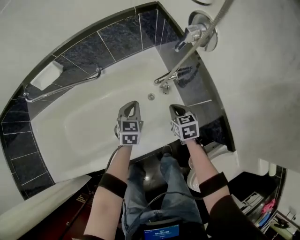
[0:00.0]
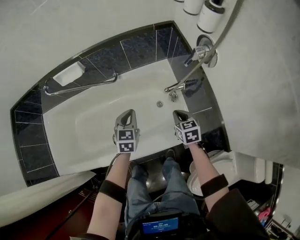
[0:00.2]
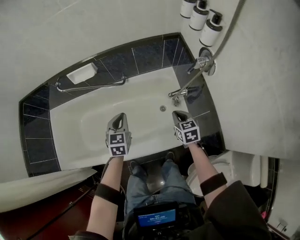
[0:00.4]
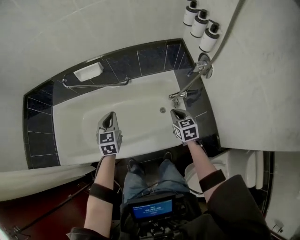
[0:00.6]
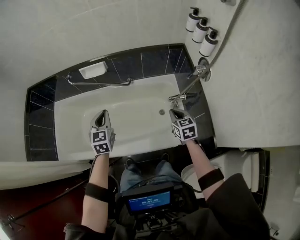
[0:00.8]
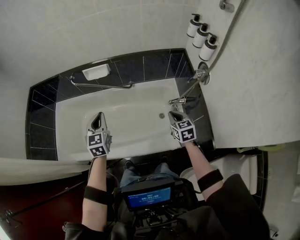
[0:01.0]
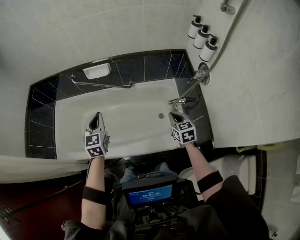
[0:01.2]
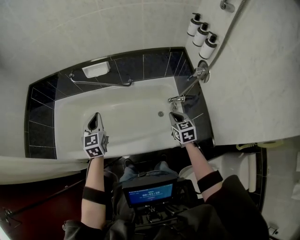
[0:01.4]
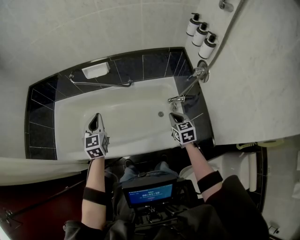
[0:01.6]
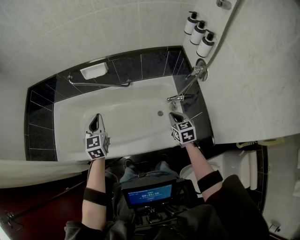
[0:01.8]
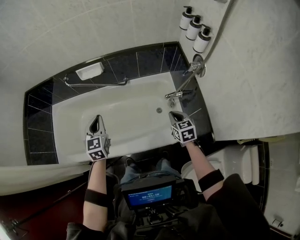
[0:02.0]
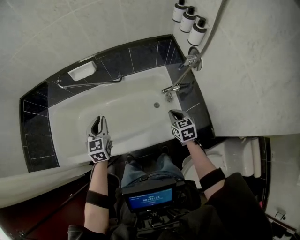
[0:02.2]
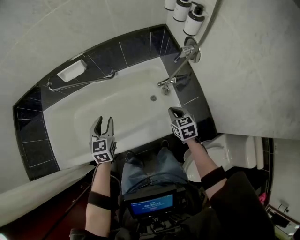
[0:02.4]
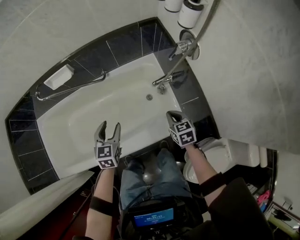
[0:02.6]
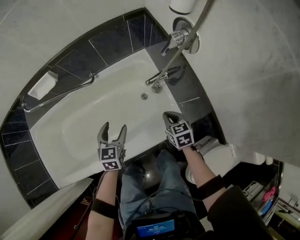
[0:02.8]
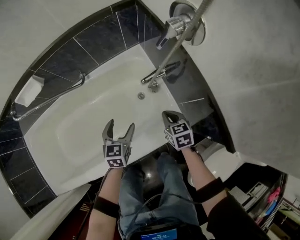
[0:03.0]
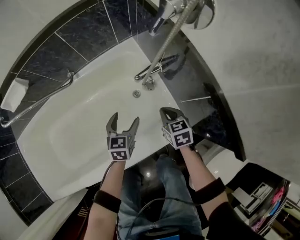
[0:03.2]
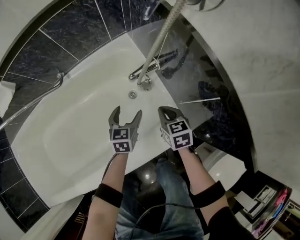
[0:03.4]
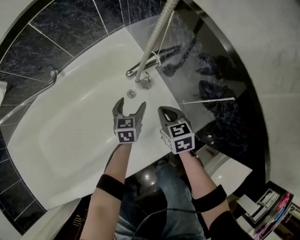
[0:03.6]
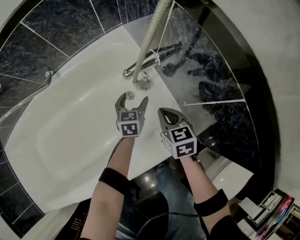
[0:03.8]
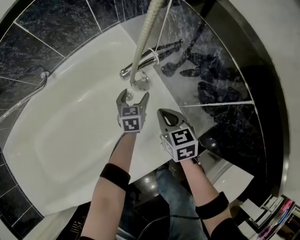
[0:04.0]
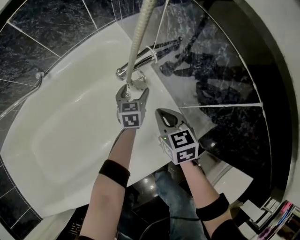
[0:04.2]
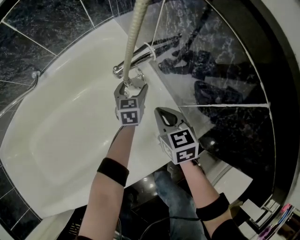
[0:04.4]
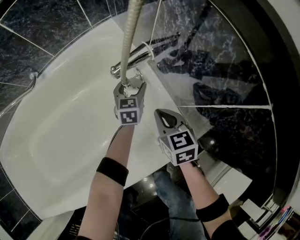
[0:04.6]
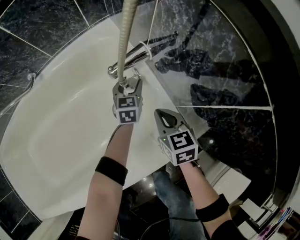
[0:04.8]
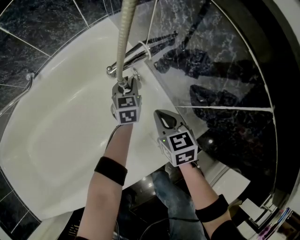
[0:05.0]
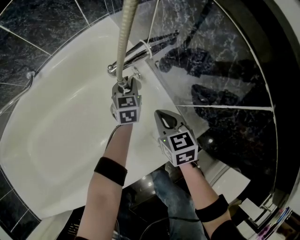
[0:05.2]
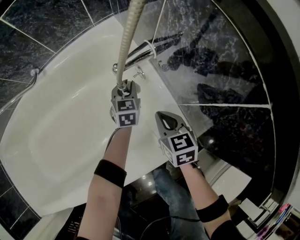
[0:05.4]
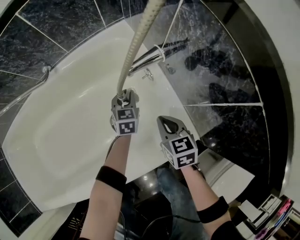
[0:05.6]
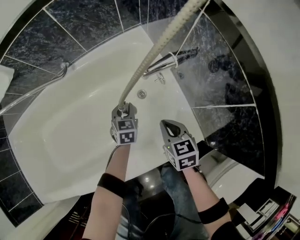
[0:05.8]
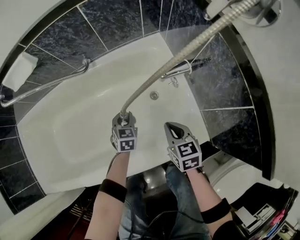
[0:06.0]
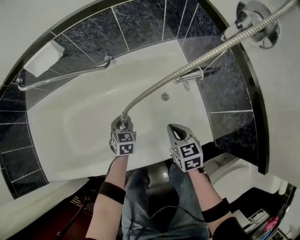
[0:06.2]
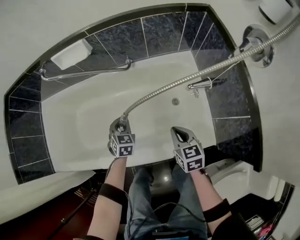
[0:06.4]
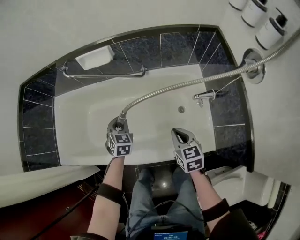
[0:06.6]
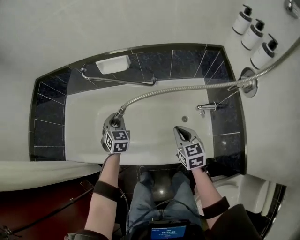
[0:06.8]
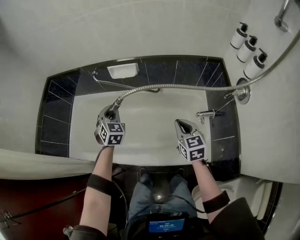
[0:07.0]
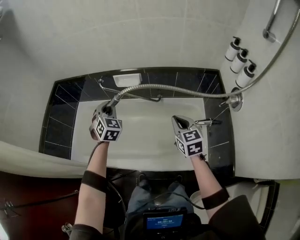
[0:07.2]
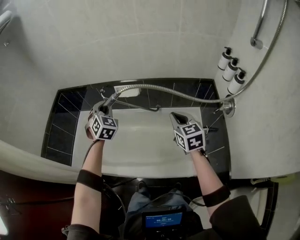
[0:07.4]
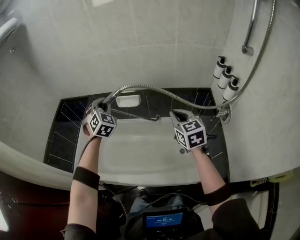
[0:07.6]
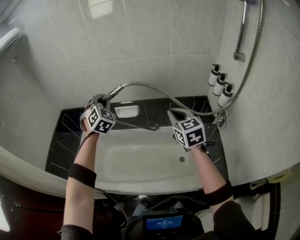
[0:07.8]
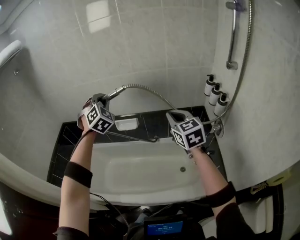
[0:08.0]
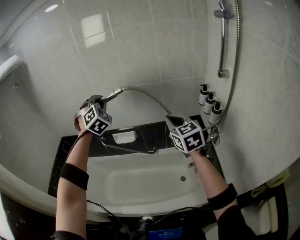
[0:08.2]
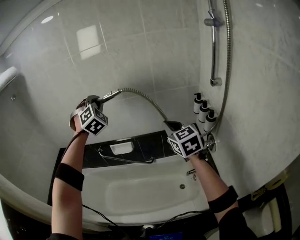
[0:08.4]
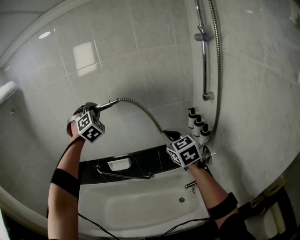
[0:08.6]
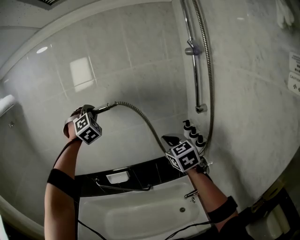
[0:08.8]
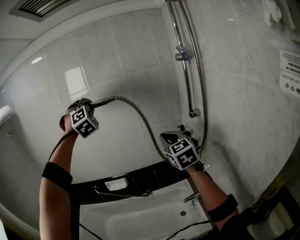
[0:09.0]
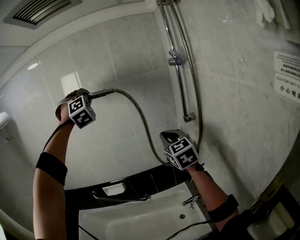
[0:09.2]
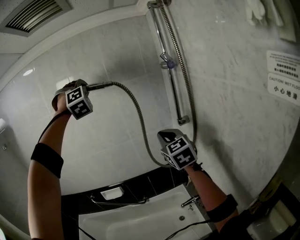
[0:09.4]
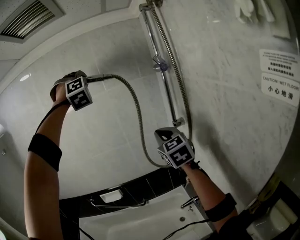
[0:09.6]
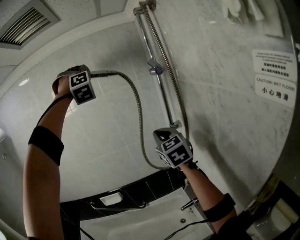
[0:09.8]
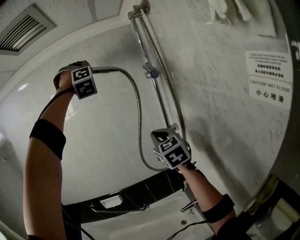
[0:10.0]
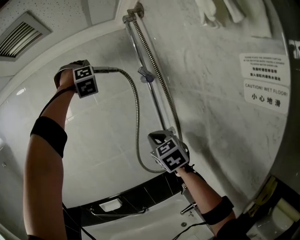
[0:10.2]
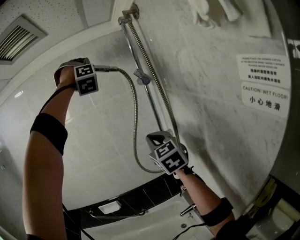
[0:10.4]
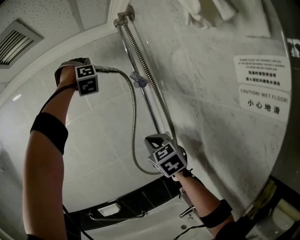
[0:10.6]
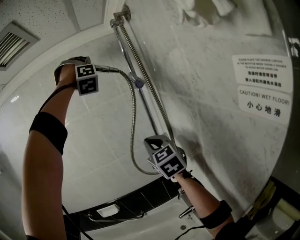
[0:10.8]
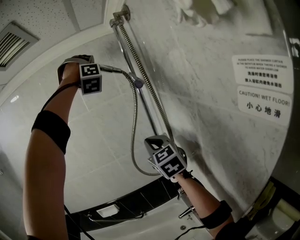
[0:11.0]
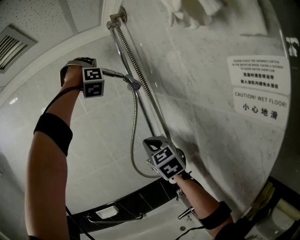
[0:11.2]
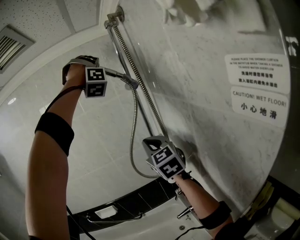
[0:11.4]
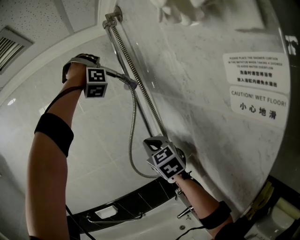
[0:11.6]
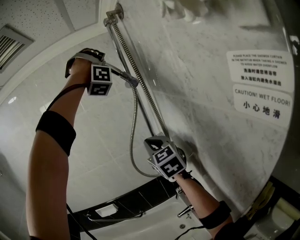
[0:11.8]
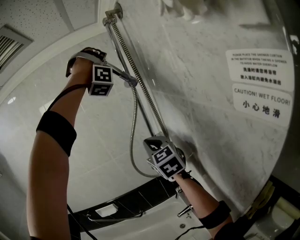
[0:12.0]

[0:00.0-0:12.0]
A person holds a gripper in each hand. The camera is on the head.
0.0 to 1.6 s: The right gripper travels upward and to the left by approximately 25 cm; the left gripper heads to the left and upward, covering about 50 cm, and rotates roughly 30 degrees.
1.6 to 3.0 s: The two grippers go about 40 cm downward and to the right. The left gripper turns by roughly 30 degrees, and opens its fingers, while the right gripper rotates approximately 20 degrees.
3.0 to 4.4 s: The right gripper travels downward by about 20 cm. Meanwhile the left gripper goes approximately 40 cm downward, forward and to the right.
4.4 to 6.0 s: The right gripper shifts some 15 cm to the left, upward and backward, while the left gripper goes roughly 25 cm to the left and backward, rotates approximately 20 degrees, and closes its fingers.
6.0 to 7.6 s: The grippers both shift upward by approximately 70 cm. The left gripper turns by some 40 degrees; the right gripper turns by some 40 degrees.
7.6 to 9.0 s: The grippers both shift upward and to the right by approximately 40 cm. The right gripper changes its angle by approximately 20 degrees. Meanwhile the left gripper turns by roughly 40 degrees.
9.0 to 10.4 s: The right gripper heads to the right and upward, covering approximately 15 cm; the left gripper shifts approximately 35 cm to the right and upward, and swivels some 30 degrees.
10.4 to 12.0 s: The left gripper is displaced to the right by about 15 cm, and turns by approximately 30 degrees.

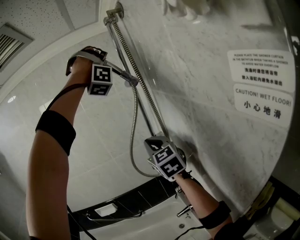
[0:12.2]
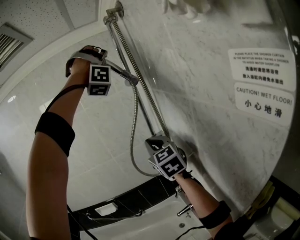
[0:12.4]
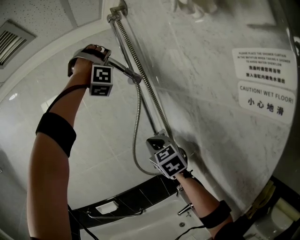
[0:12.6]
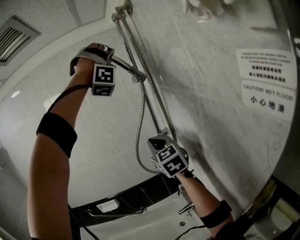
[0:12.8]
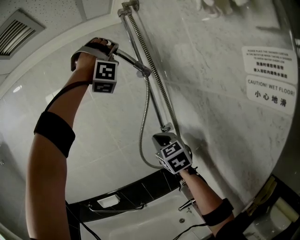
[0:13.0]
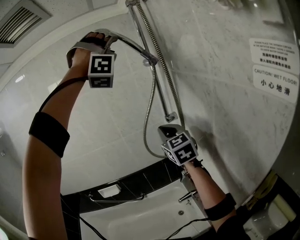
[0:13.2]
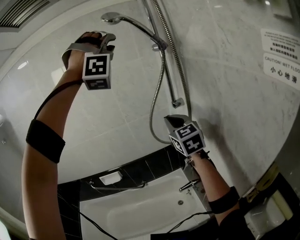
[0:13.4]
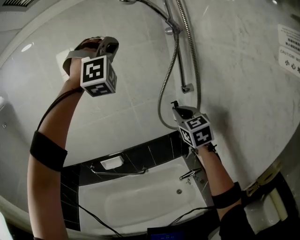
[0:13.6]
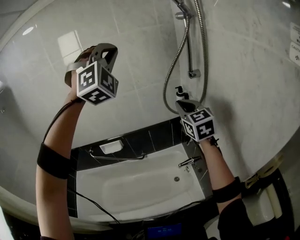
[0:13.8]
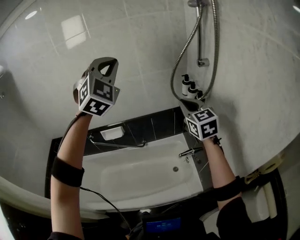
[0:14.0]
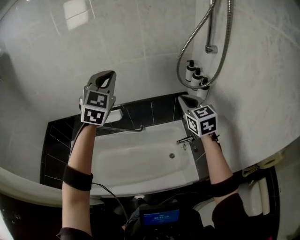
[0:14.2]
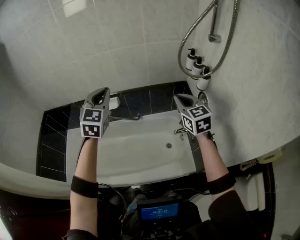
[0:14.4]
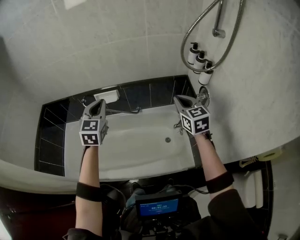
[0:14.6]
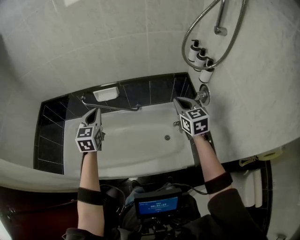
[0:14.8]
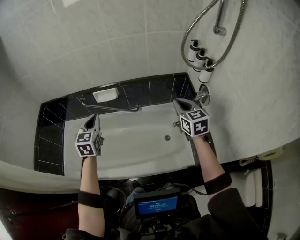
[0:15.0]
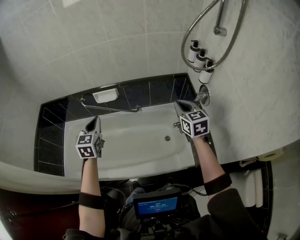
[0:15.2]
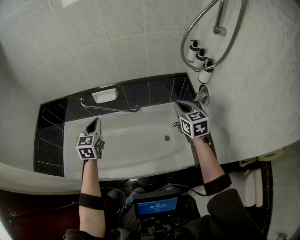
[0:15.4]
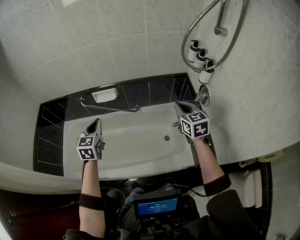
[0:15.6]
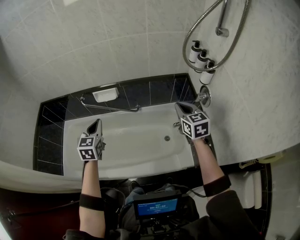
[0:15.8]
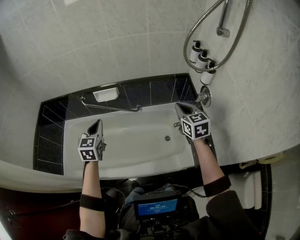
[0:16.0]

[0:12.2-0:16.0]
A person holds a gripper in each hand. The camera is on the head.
12.2 to 13.4 s: The left gripper is displaced backward, to the left and downward by approximately 15 cm, and changes its angle by about 20 degrees. Meanwhile the right gripper moves downward, roughly 5 cm.
13.4 to 14.8 s: The right gripper heads downward and to the left, covering some 30 cm, and turns by approximately 20 degrees, while the left gripper goes about 70 cm downward and to the left, and rotates around the line of its fingers by some 110 degrees, counterclockwise from behind.
14.8 to 16.0 s: The left gripper shifts roughly 5 cm downward.

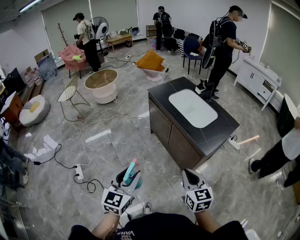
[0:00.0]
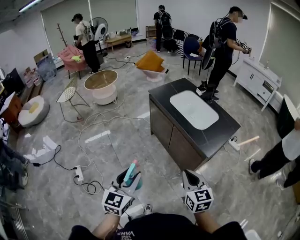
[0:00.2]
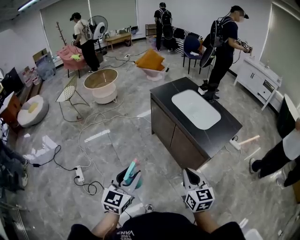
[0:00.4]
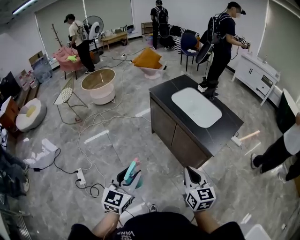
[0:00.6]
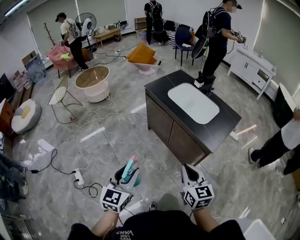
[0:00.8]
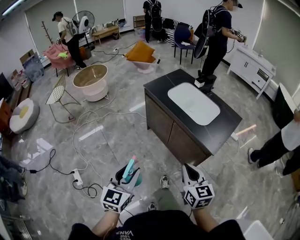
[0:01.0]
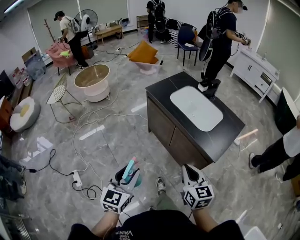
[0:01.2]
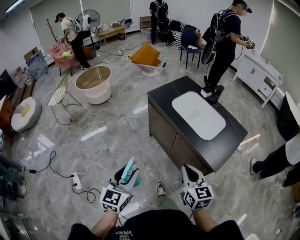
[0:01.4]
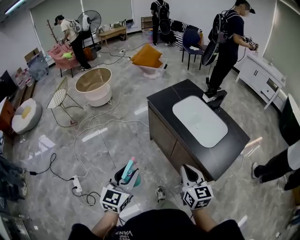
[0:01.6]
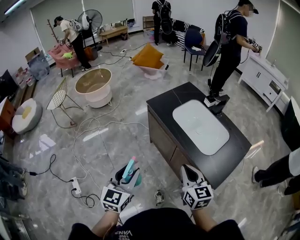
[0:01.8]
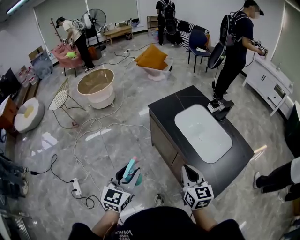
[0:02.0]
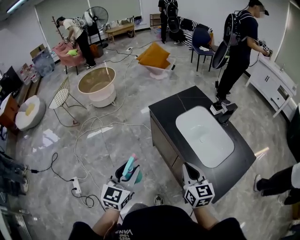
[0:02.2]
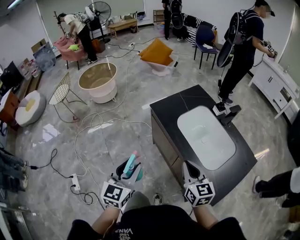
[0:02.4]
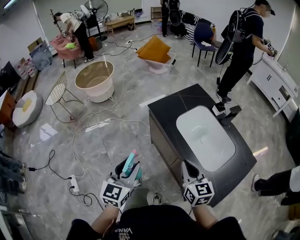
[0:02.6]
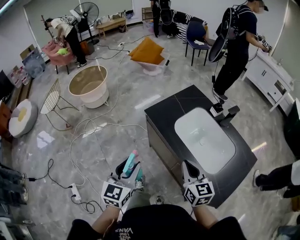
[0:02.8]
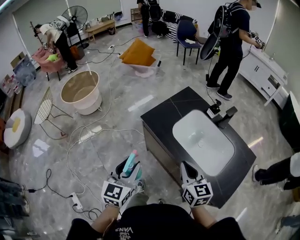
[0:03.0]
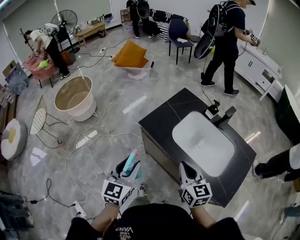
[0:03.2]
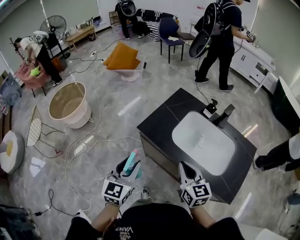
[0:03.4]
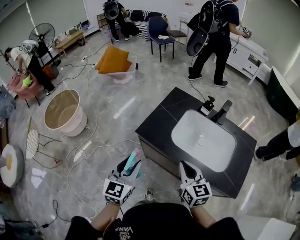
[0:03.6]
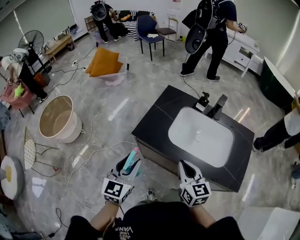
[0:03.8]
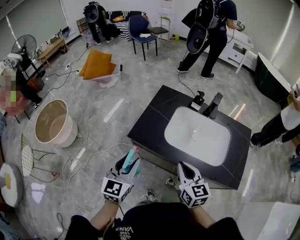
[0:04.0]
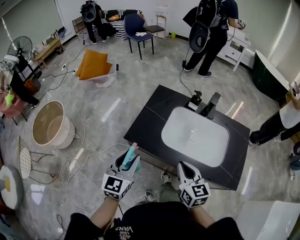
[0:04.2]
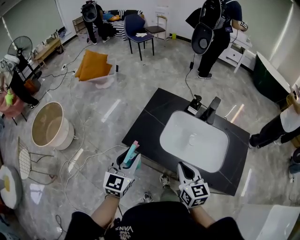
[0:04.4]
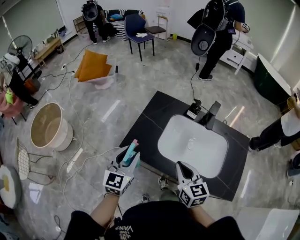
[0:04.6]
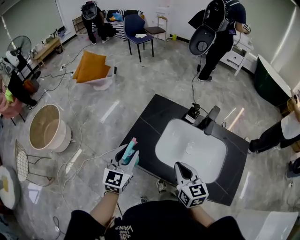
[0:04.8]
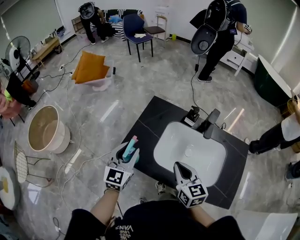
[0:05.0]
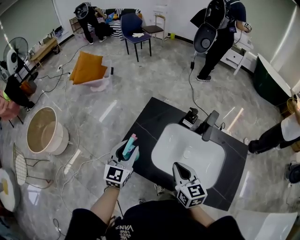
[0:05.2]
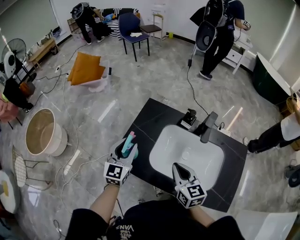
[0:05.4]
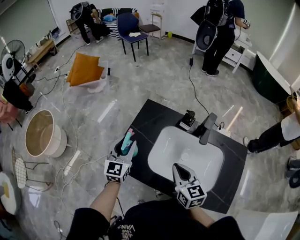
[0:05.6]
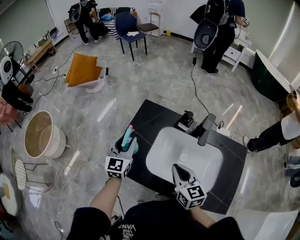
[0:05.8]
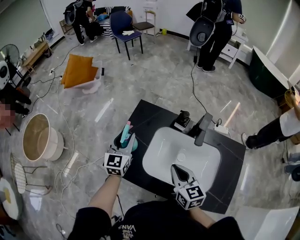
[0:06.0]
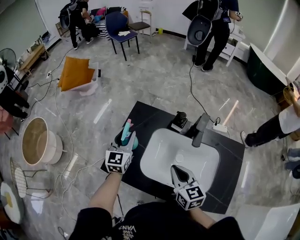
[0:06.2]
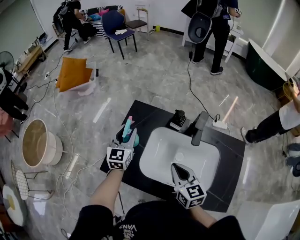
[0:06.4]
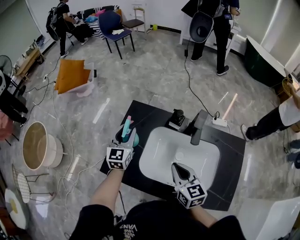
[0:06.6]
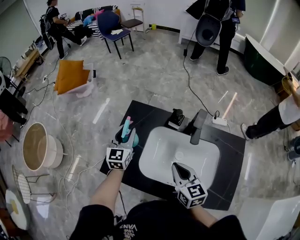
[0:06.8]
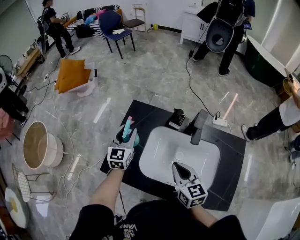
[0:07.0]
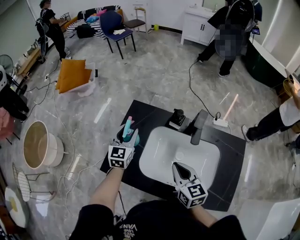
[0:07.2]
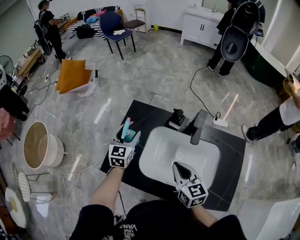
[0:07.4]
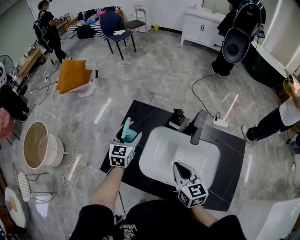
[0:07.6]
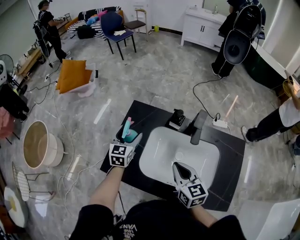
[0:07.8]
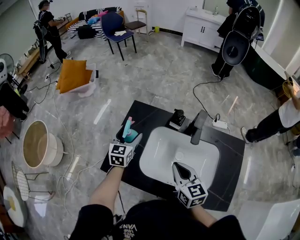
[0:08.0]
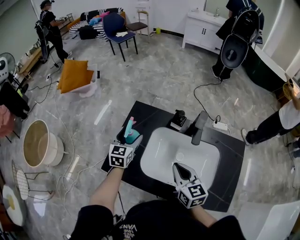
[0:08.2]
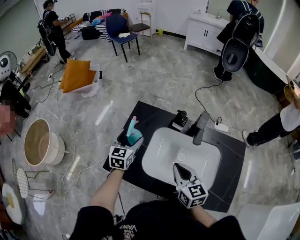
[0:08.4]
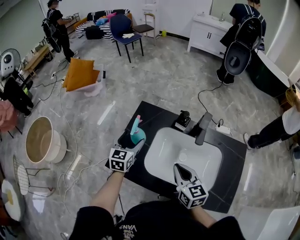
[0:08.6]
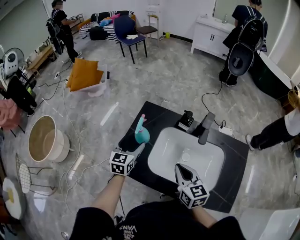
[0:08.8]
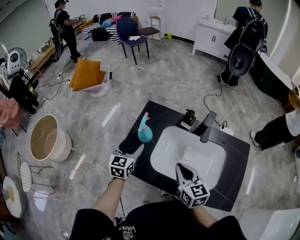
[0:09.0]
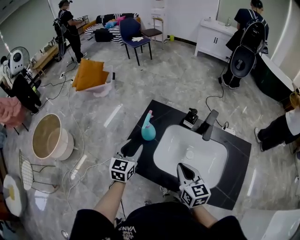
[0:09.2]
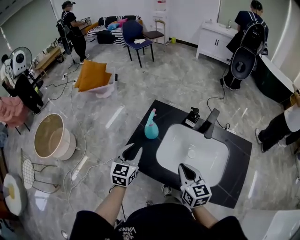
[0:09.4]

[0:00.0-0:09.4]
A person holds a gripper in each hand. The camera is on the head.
0.0 to 1.6 s: Both grippers move forward, some 20 cm.
1.6 to 3.2 s: The two grippers go approximately 30 cm forward.
3.2 to 4.8 s: The right gripper shifts roughly 15 cm forward. Meanwhile the left gripper goes about 25 cm forward.
4.8 to 6.2 s: The right gripper is displaced forward and to the right by approximately 10 cm, while the left gripper goes about 20 cm forward.
6.2 to 7.8 s: The left gripper moves downward, roughly 5 cm, and opens.
7.8 to 9.4 s: The right gripper moves backward and to the left, about 10 cm, while the left gripper goes roughly 20 cm backward and to the left, and closes up.
